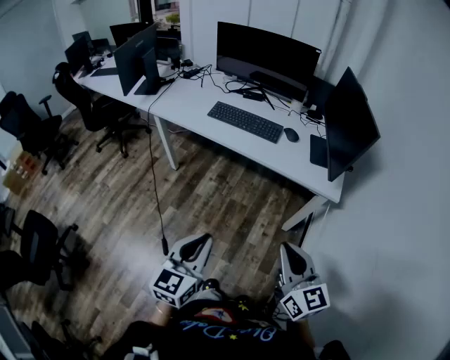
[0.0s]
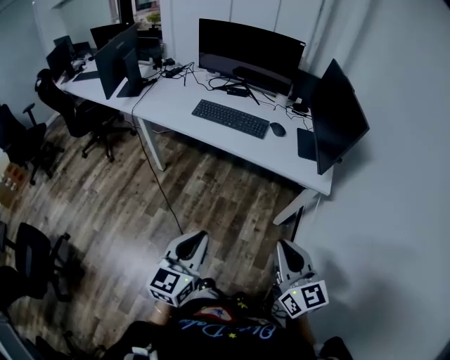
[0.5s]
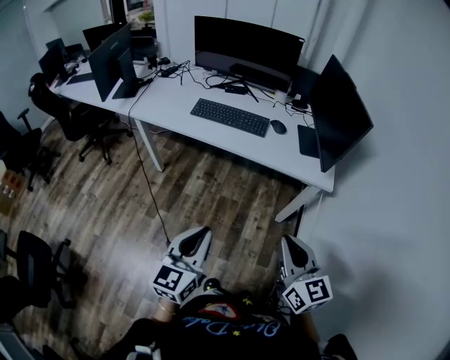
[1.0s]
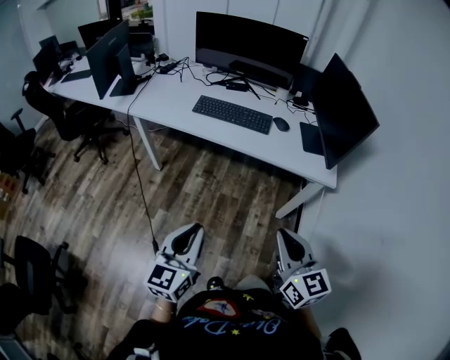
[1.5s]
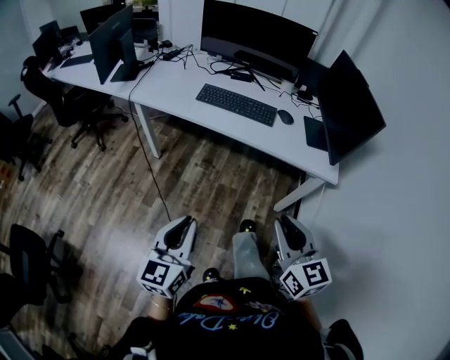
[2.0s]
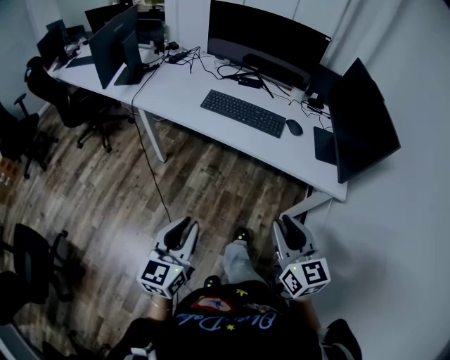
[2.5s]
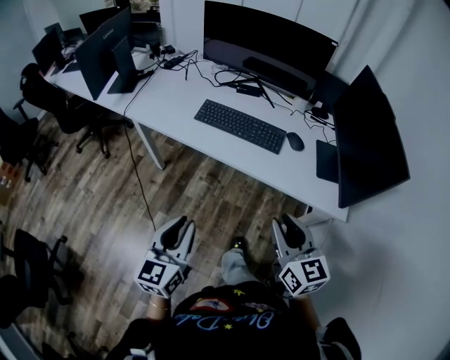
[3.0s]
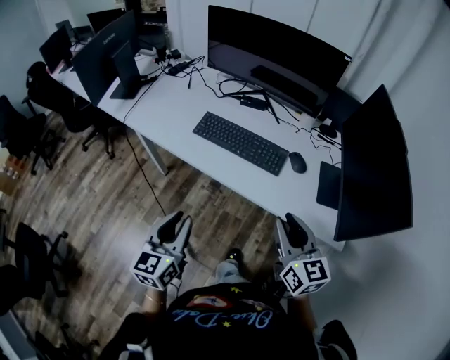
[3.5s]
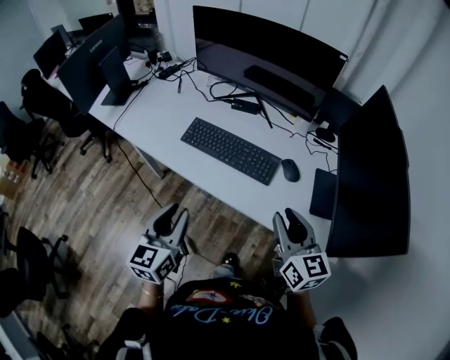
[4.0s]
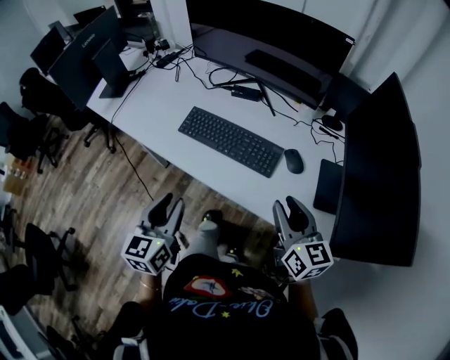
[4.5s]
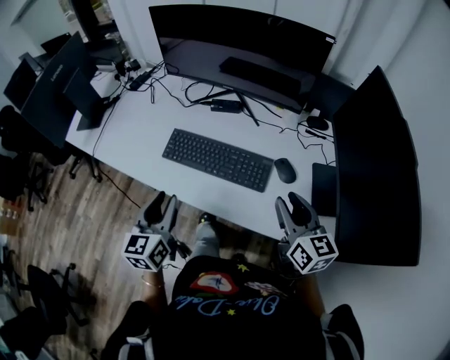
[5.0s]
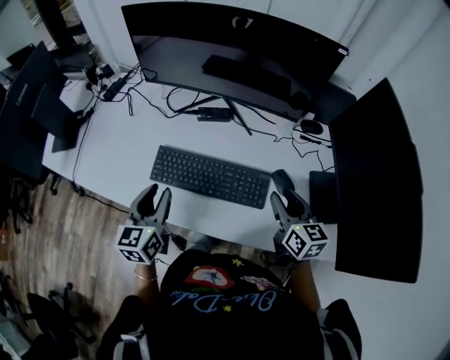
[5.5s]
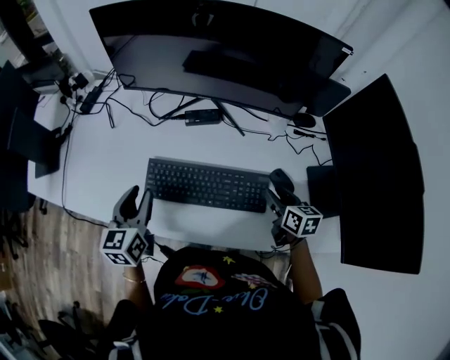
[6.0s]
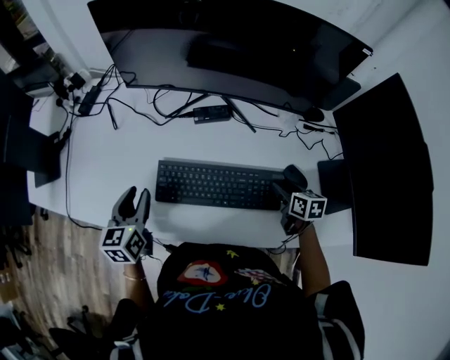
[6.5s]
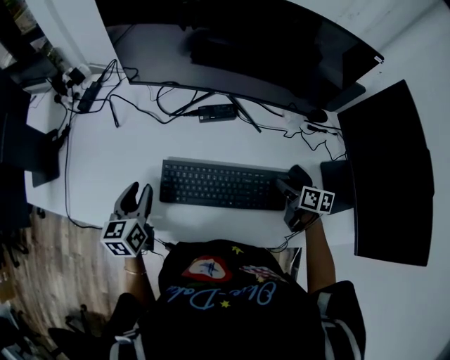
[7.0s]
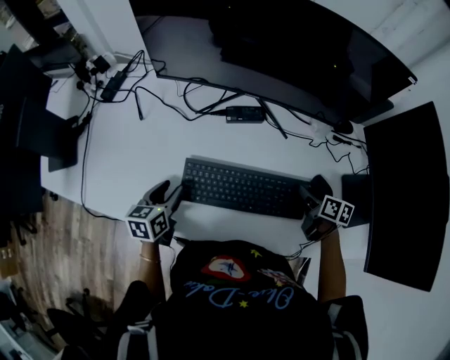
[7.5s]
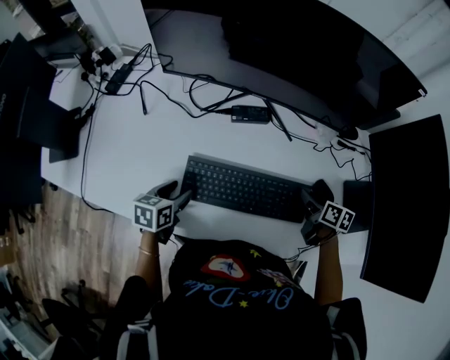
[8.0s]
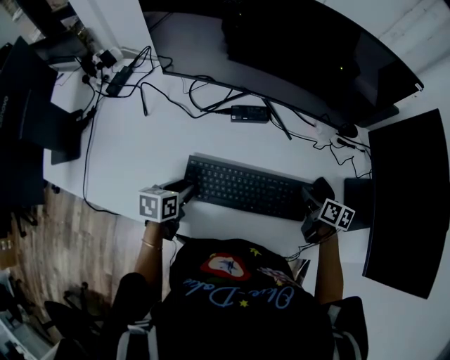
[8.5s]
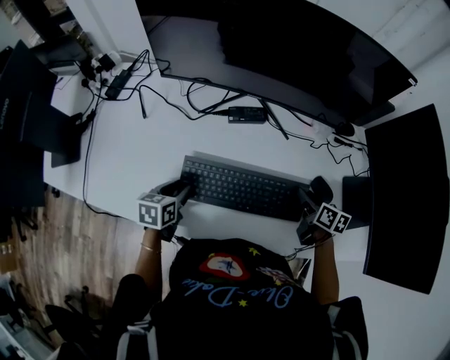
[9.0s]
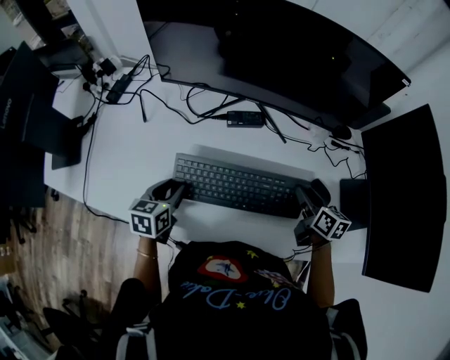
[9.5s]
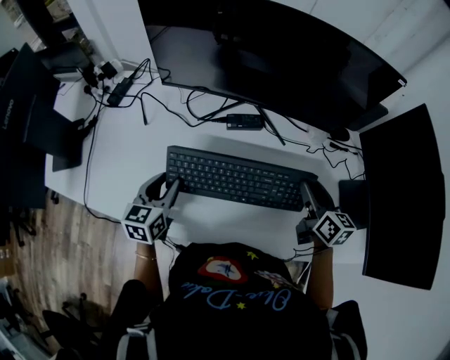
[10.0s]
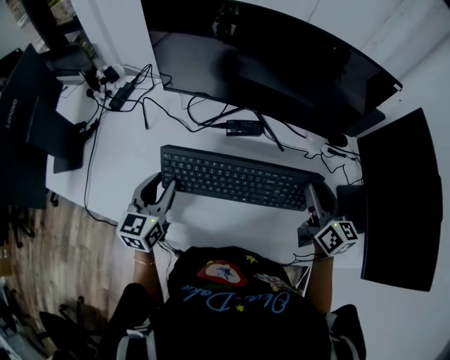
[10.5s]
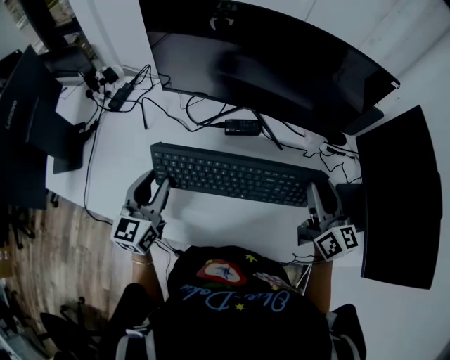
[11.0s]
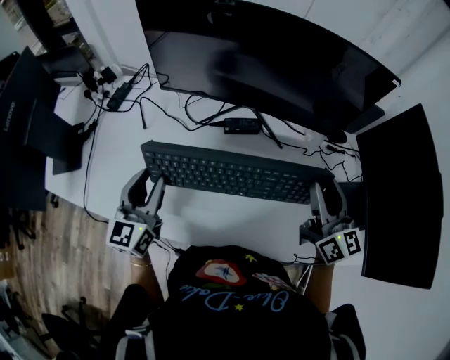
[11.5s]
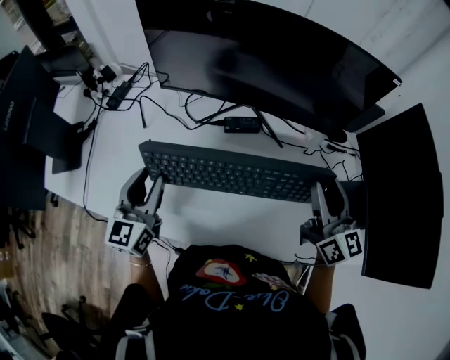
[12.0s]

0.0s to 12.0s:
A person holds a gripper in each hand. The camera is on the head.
0.0s to 2.0s: The right gripper goes some 10 cm to the left and forward, while the left gripper goes some 10 cm to the left.
2.0s to 4.0s: Both grippers travel together forward, some 35 cm.
4.0s to 6.0s: The left gripper goes approximately 30 cm forward; the right gripper shifts some 30 cm forward and downward, and rotates roughly 40 degrees.
6.0s to 8.0s: The left gripper shifts about 15 cm downward, swivels approximately 30 degrees, and opens, while the right gripper ends up some 5 cm from where it was.
8.0s to 10.0s: Both grippers travel together upward, some 10 cm. The left gripper rotates roughly 30 degrees. The right gripper turns by about 30 degrees.
10.0s to 12.0s: Both grippers move upward, about 10 cm. The left gripper rotates some 20 degrees. The right gripper turns by about 30 degrees.

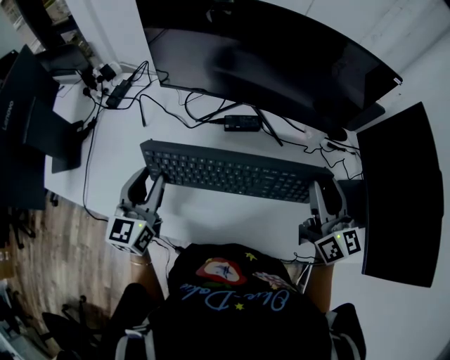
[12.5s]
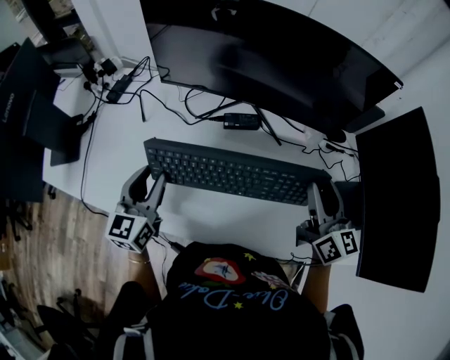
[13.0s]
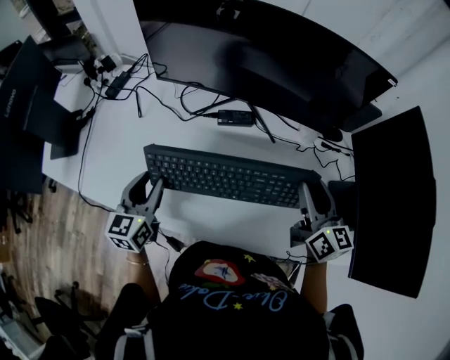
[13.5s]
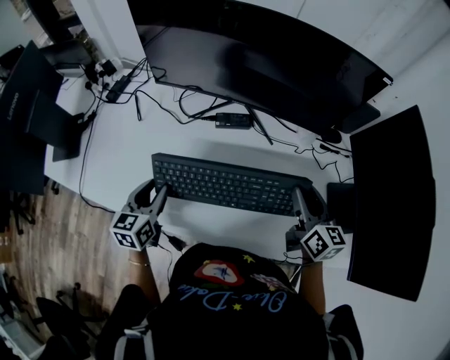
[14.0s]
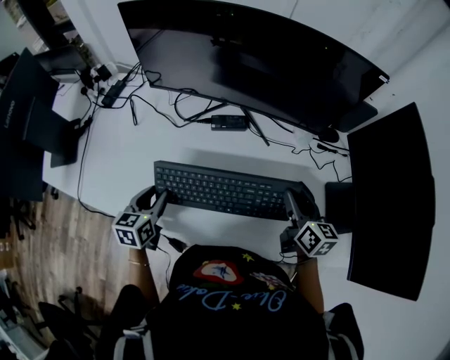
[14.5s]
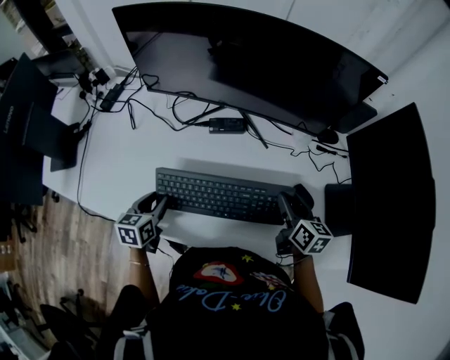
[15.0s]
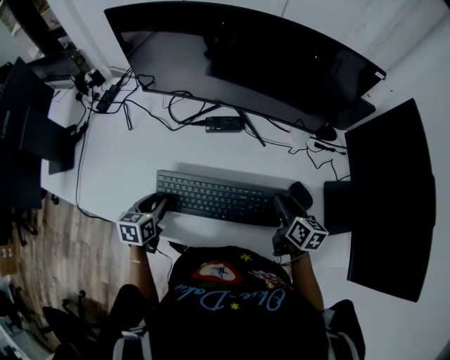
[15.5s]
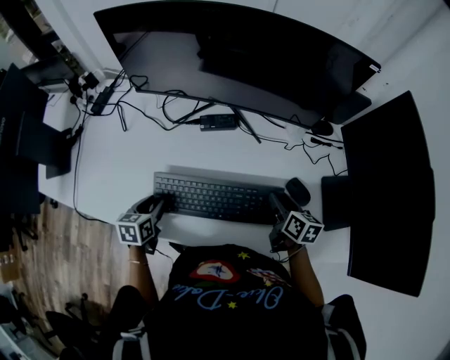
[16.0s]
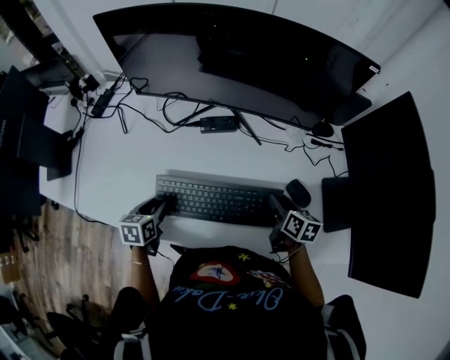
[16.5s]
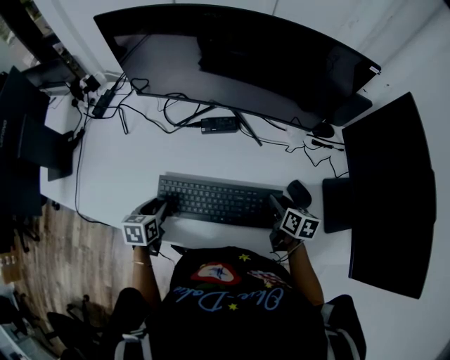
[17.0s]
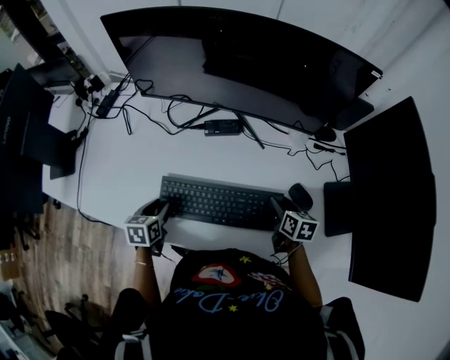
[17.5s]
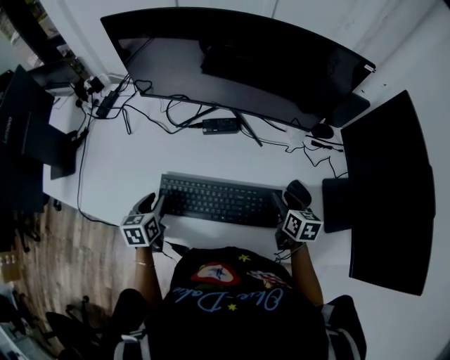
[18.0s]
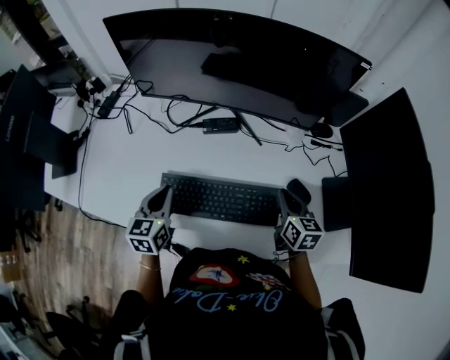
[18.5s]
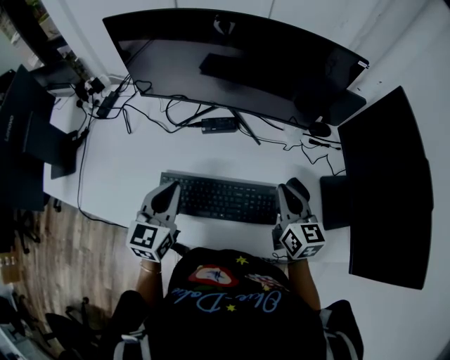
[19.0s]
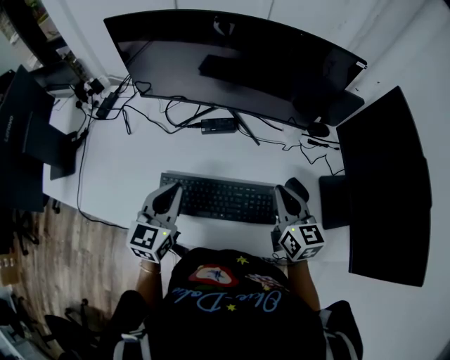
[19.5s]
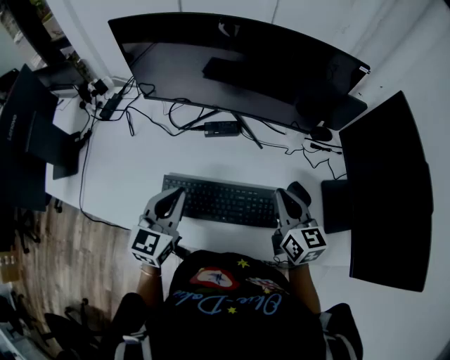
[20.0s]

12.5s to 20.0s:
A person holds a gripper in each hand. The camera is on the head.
12.5s to 14.5s: Both grippers move downward, roughly 10 cm. The left gripper rotates approximately 30 degrees. Meanwhile the right gripper rotates approximately 30 degrees.
14.5s to 16.5s: The two grippers go some 10 cm downward.
16.5s to 18.0s: There are only small adjustments of the grippers.
18.0s to 20.0s: The left gripper travels upward and to the right by approximately 20 cm, turns by approximately 40 degrees, and closes its fingers, while the right gripper travels upward by roughly 15 cm, turns by about 30 degrees, and closes.

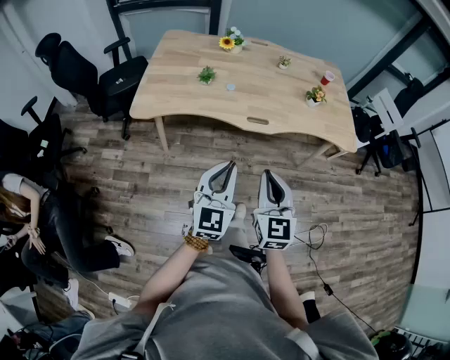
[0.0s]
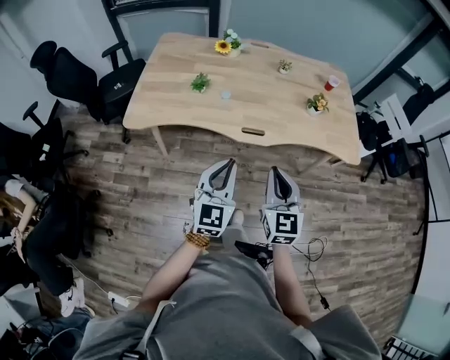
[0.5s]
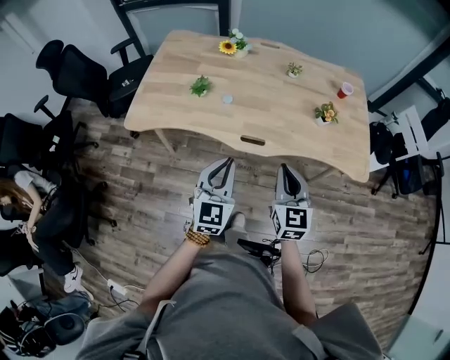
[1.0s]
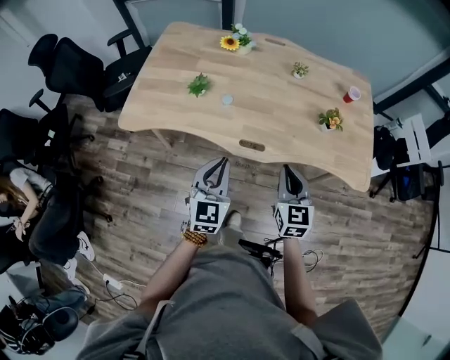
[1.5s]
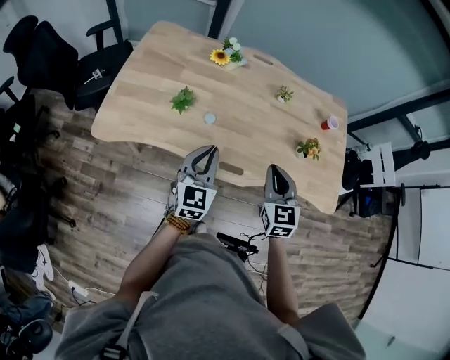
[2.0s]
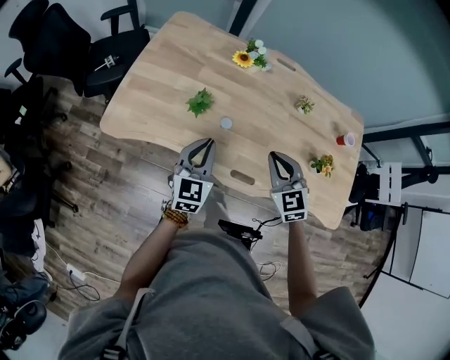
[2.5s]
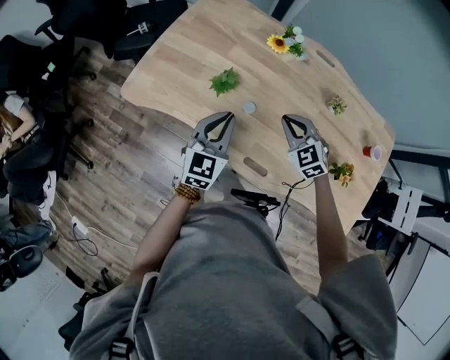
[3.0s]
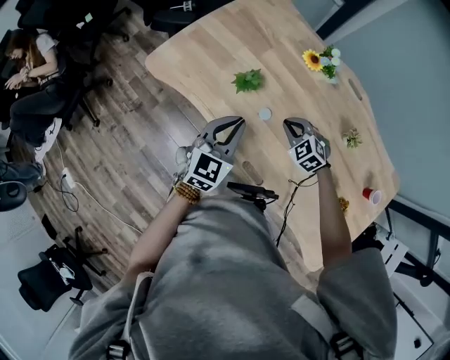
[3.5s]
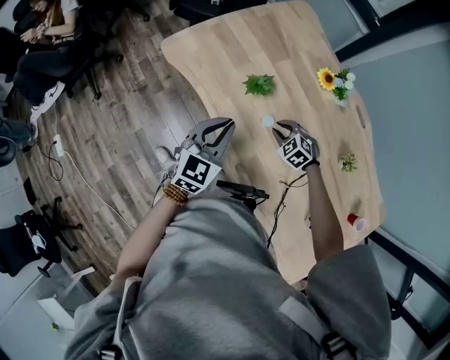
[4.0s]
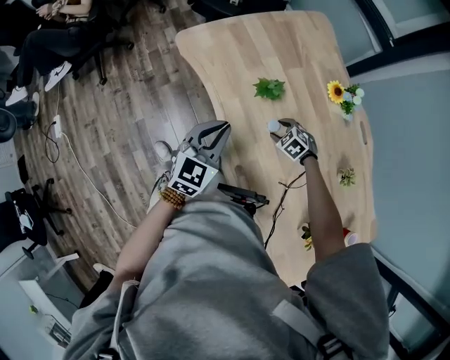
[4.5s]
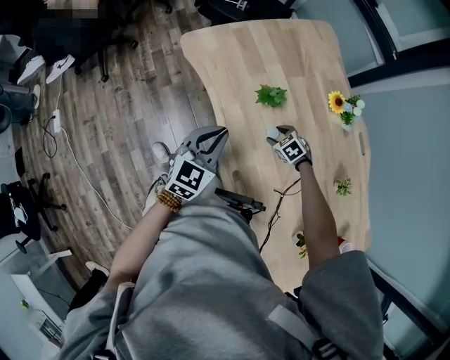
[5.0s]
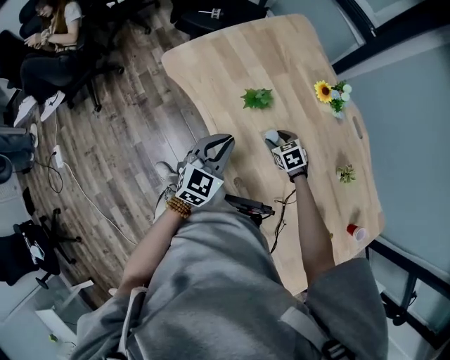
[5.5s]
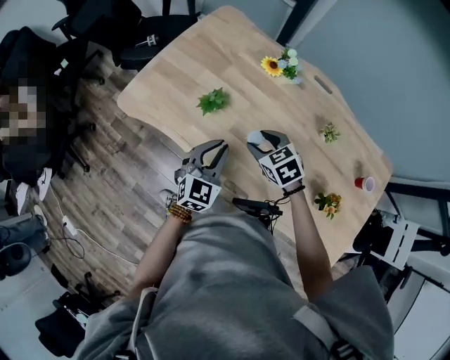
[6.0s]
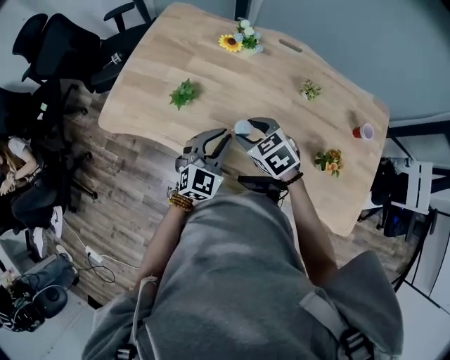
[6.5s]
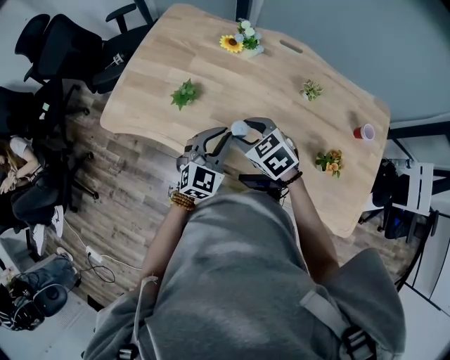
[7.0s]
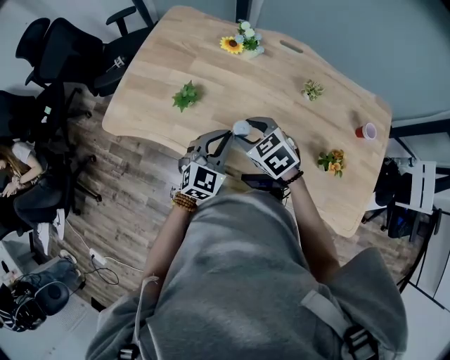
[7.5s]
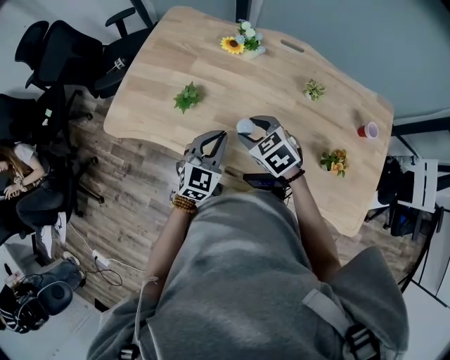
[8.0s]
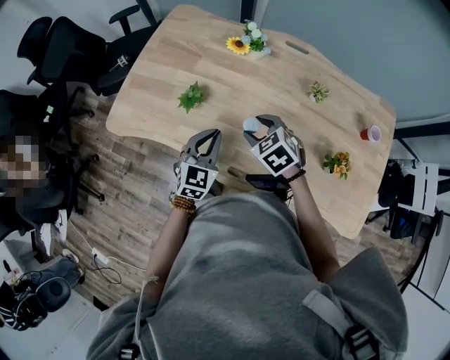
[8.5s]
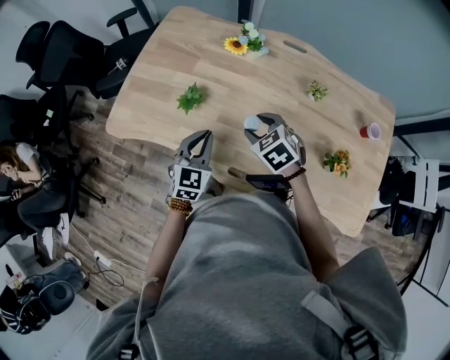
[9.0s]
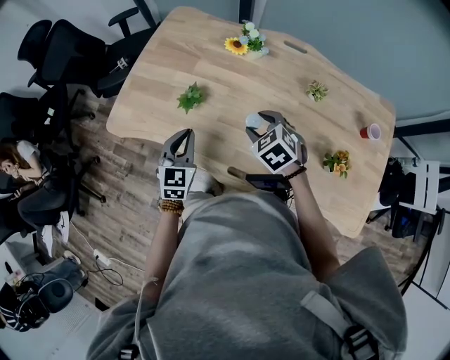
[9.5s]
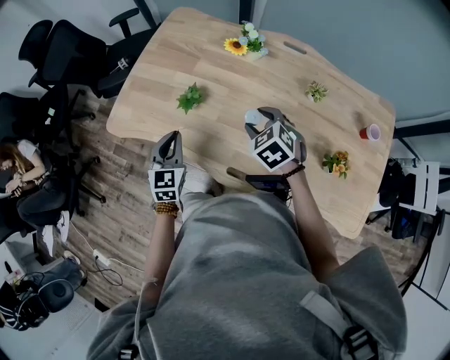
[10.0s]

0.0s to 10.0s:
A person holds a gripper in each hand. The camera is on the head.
0.0s to 2.0s: The two grippers go about 35 cm forward.
2.0s to 4.0s: The left gripper moves roughly 10 cm, and rotates about 30 degrees; the right gripper goes some 25 cm downward, and tilts its fingers approximately 40 degrees downward.
4.0s to 6.0s: The left gripper changes place by roughly 10 cm, and turns by approximately 20 degrees. The right gripper goes some 15 cm upward, rotates about 40 degrees, and opens up.
6.0s to 8.0s: The right gripper ends up approximately 5 cm from where it was; the left gripper travels to the right by about 5 cm.
8.0s to 10.0s: The left gripper heads to the left, covering about 15 cm, and rotates roughly 30 degrees.
